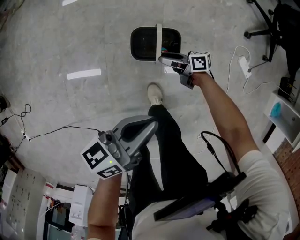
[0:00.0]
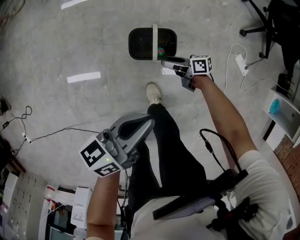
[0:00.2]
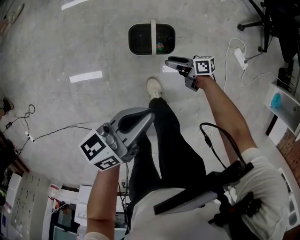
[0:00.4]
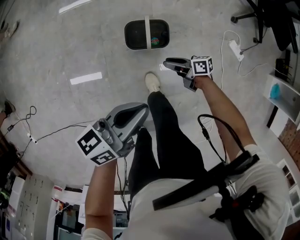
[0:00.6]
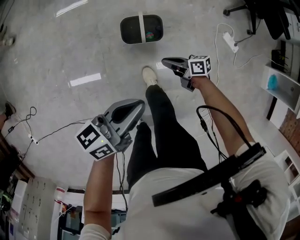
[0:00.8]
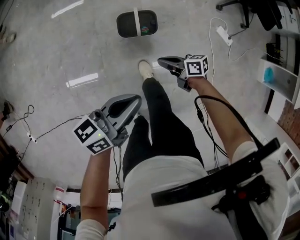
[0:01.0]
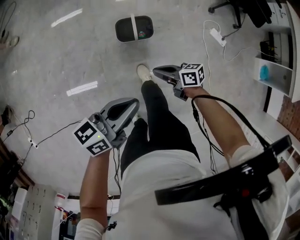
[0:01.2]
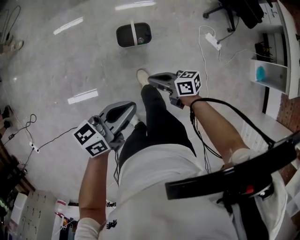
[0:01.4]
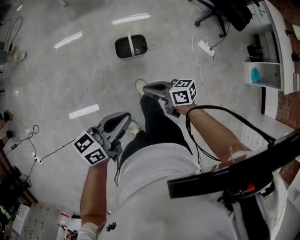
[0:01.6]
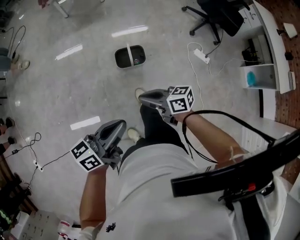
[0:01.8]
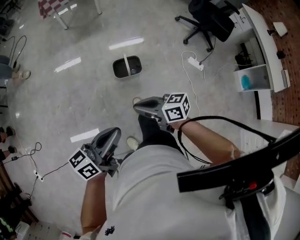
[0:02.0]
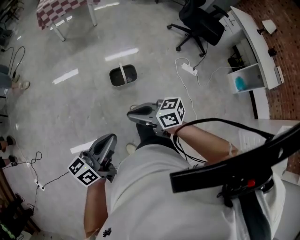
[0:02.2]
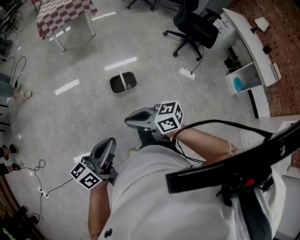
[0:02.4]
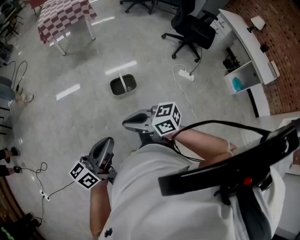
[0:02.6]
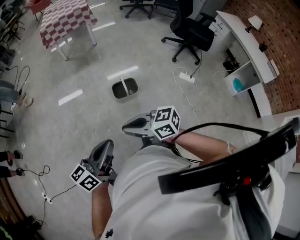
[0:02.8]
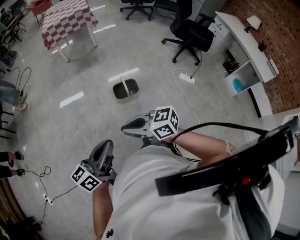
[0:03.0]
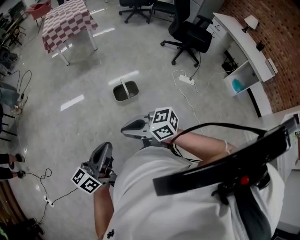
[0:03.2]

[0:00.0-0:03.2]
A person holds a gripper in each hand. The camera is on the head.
0:00.0 to 0:01.6: The left gripper changes place by some 30 cm; the right gripper heads upward, covering some 35 cm, and closes its fingers.
0:01.6 to 0:03.2: The left gripper changes place by about 20 cm; the right gripper goes approximately 20 cm upward, and turns by approximately 30 degrees.

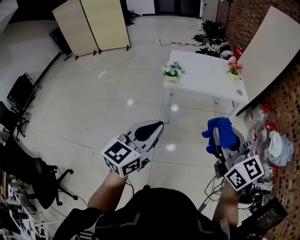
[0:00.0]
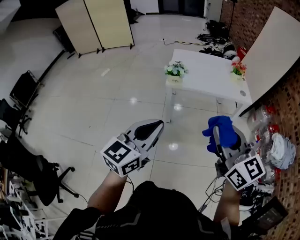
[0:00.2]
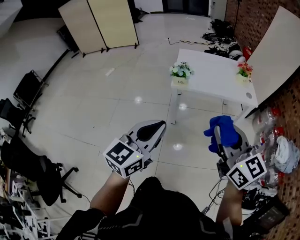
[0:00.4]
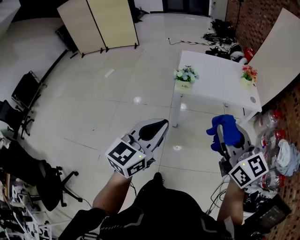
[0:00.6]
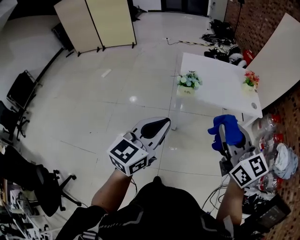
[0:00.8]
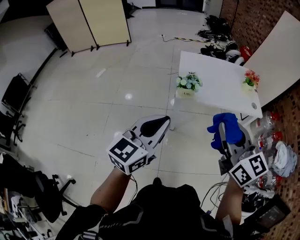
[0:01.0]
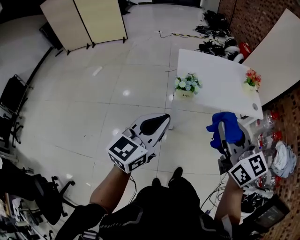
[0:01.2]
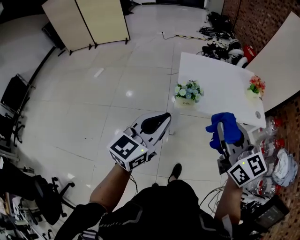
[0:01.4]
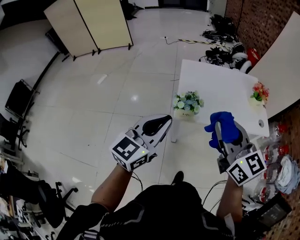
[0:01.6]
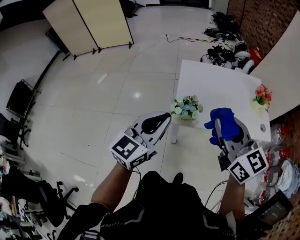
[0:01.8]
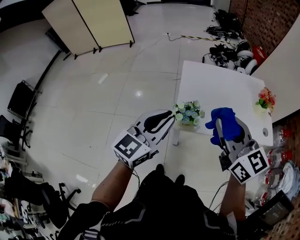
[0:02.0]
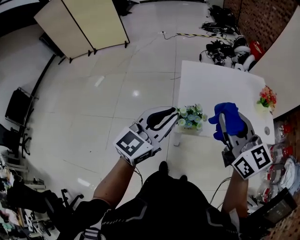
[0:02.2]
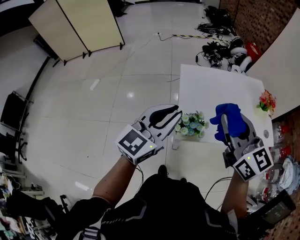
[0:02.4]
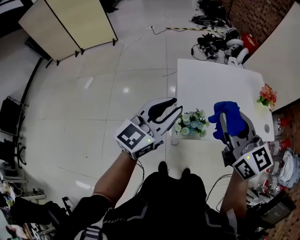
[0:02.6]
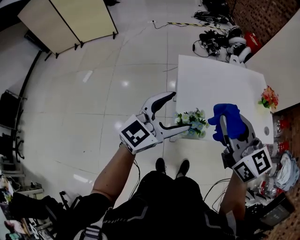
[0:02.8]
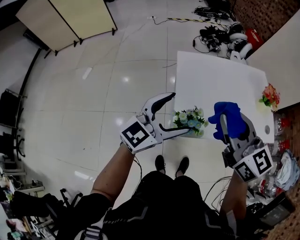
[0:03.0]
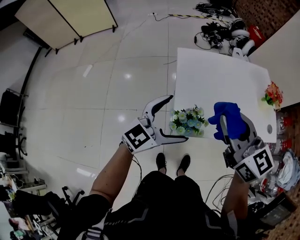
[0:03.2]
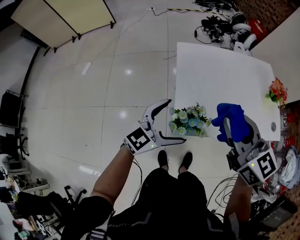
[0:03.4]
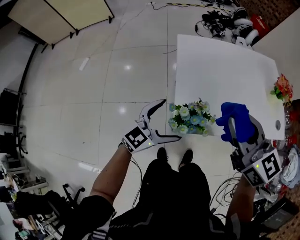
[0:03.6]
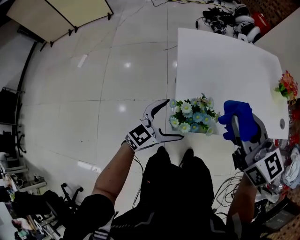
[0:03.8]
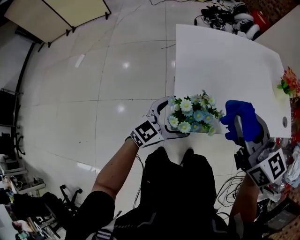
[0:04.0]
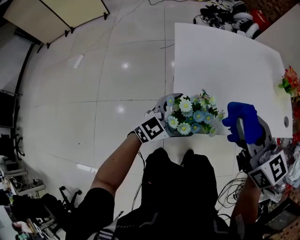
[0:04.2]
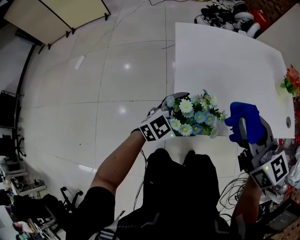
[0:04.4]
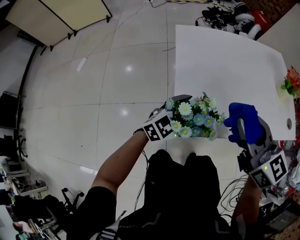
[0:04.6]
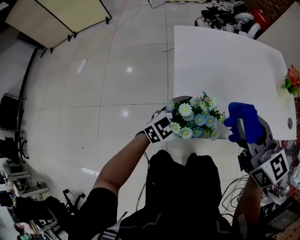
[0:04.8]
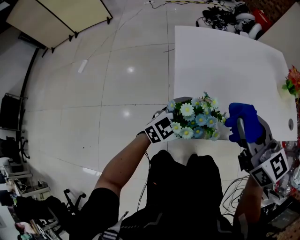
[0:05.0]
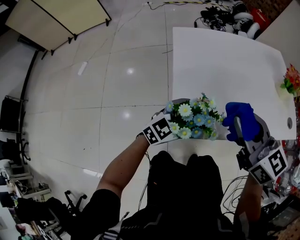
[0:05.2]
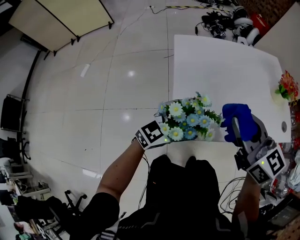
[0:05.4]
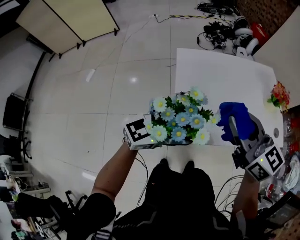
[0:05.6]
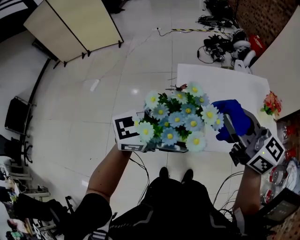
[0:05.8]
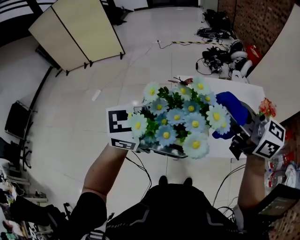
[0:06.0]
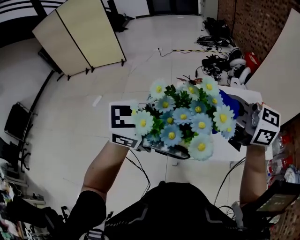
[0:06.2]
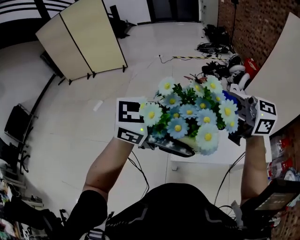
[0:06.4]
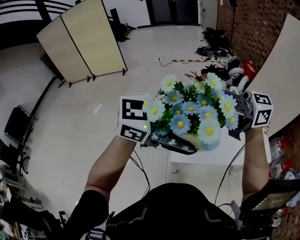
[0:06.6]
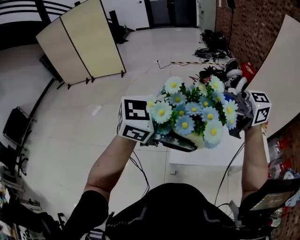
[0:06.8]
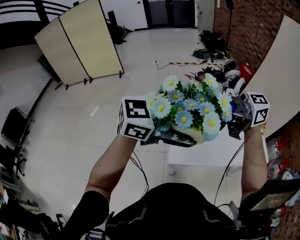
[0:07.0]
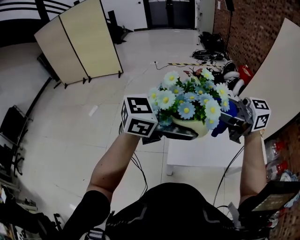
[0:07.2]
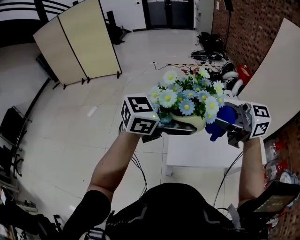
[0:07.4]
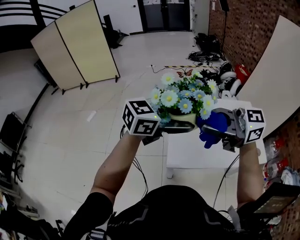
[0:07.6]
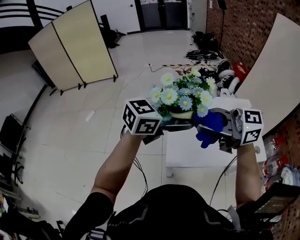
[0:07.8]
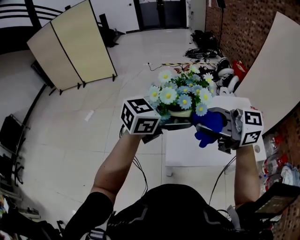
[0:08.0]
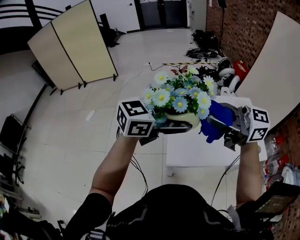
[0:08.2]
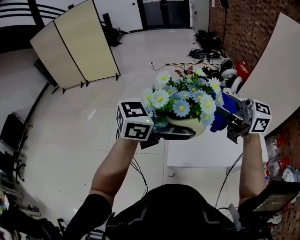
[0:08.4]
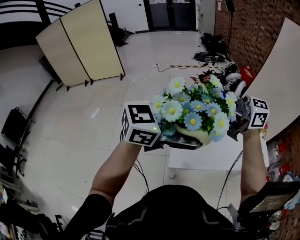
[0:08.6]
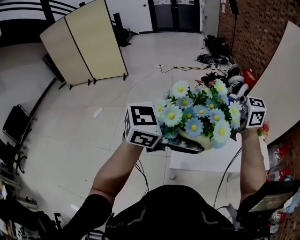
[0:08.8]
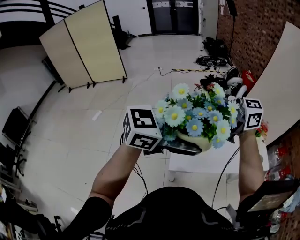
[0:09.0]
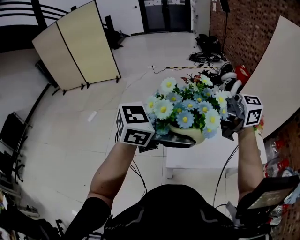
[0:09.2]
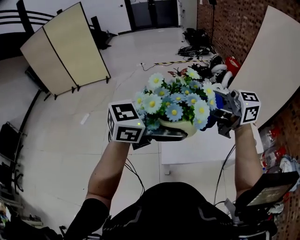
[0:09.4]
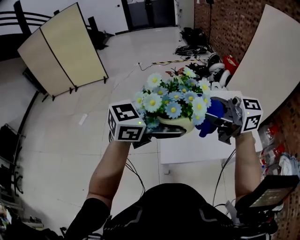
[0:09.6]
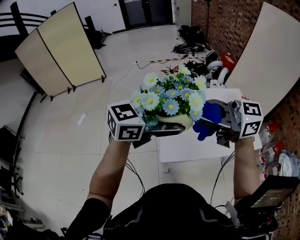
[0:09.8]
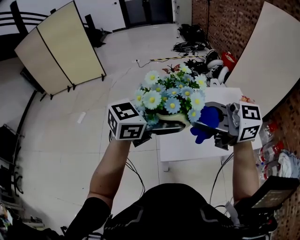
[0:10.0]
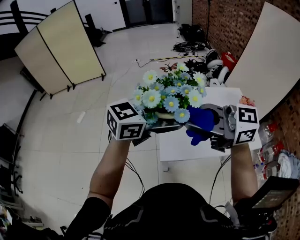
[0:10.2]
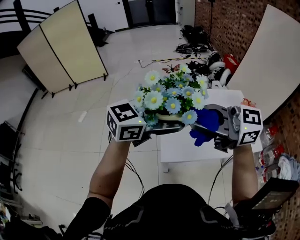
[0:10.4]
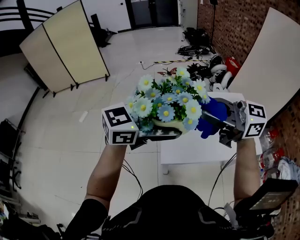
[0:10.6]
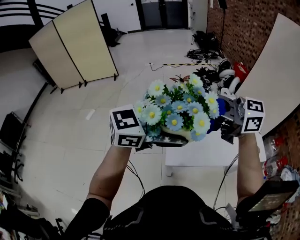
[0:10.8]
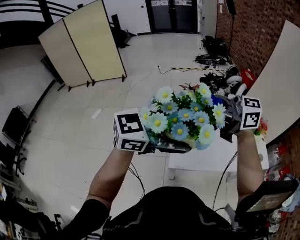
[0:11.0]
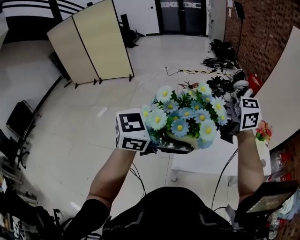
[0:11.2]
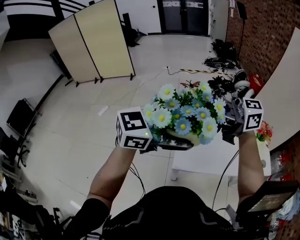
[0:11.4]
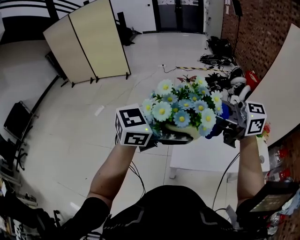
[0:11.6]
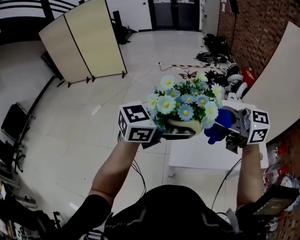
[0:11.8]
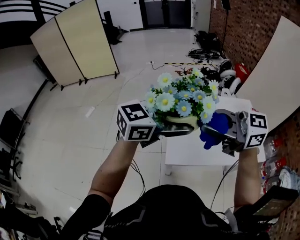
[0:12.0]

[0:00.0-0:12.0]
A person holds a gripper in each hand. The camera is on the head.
0:00.0 to 0:01.6: Both grippers are carried forward, some 40 cm.
0:01.6 to 0:03.0: The two grippers go roughly 25 cm forward. The left gripper opens its fingers.
0:03.0 to 0:04.4: The left gripper heads downward, covering approximately 30 cm, and swivels approximately 20 degrees. Meanwhile the right gripper goes some 20 cm downward.
0:04.4 to 0:06.0: The right gripper shifts roughly 30 cm upward, and swivels approximately 30 degrees; the left gripper goes approximately 40 cm upward, and changes its angle by about 20 degrees.
0:06.0 to 0:07.6: The right gripper moves roughly 10 cm, and turns by some 30 degrees.
0:07.6 to 0:09.0: The left gripper moves about 10 cm. Meanwhile the right gripper ends up roughly 10 cm from where it was.
0:09.0 to 0:10.4: The right gripper shifts by about 10 cm, while the left gripper shifts by some 5 cm.

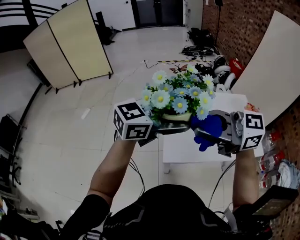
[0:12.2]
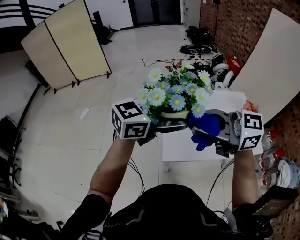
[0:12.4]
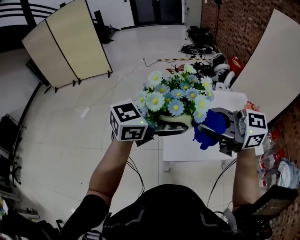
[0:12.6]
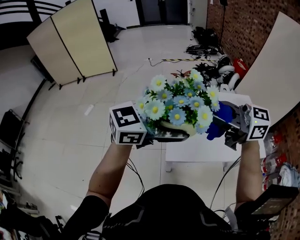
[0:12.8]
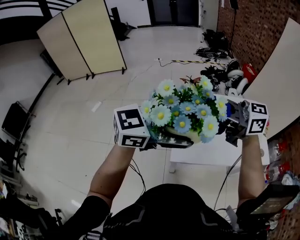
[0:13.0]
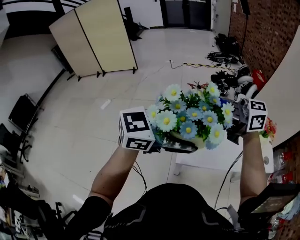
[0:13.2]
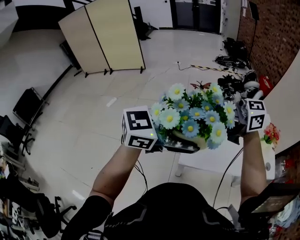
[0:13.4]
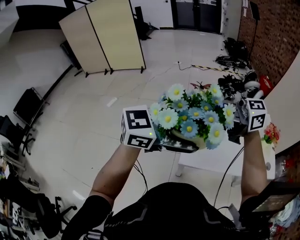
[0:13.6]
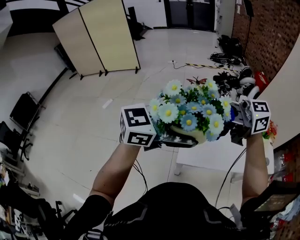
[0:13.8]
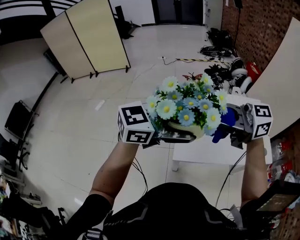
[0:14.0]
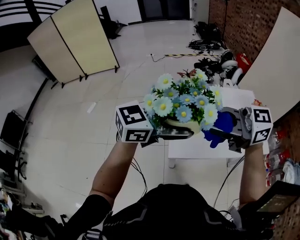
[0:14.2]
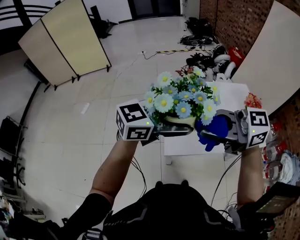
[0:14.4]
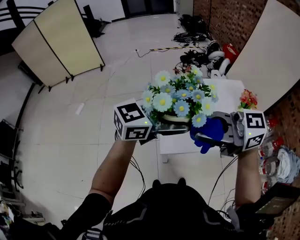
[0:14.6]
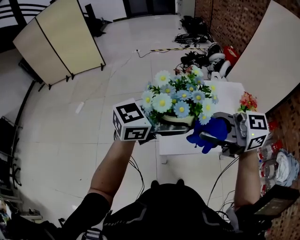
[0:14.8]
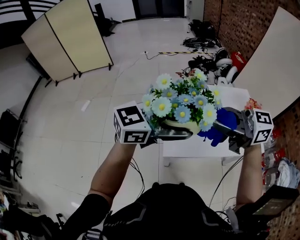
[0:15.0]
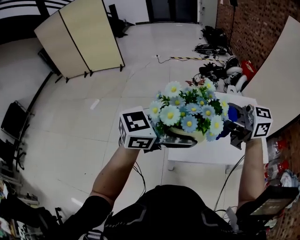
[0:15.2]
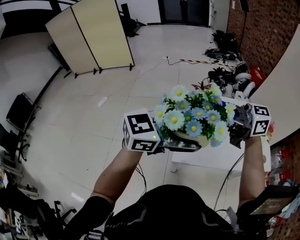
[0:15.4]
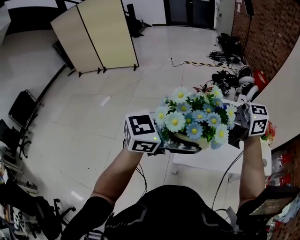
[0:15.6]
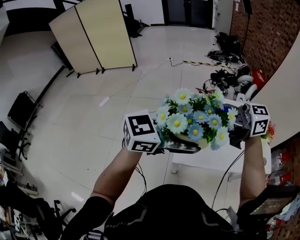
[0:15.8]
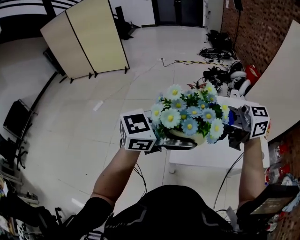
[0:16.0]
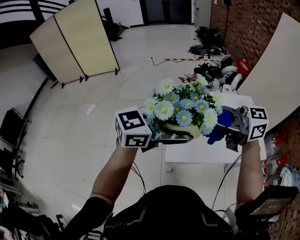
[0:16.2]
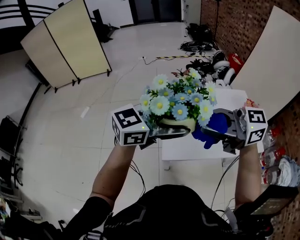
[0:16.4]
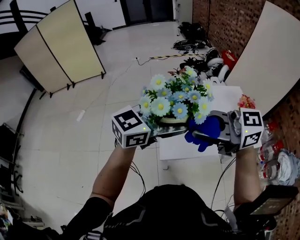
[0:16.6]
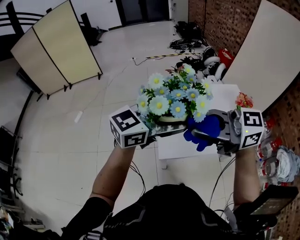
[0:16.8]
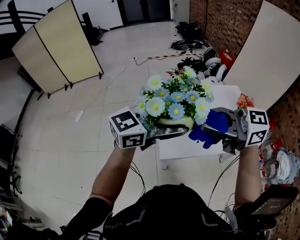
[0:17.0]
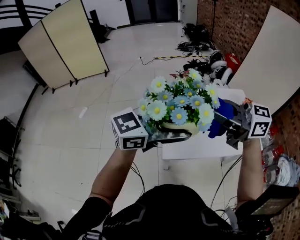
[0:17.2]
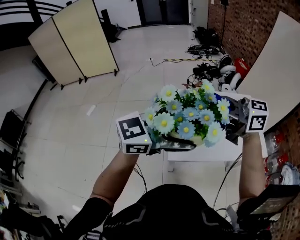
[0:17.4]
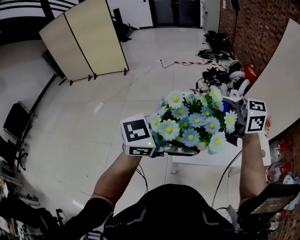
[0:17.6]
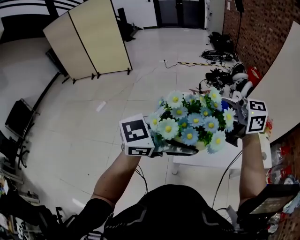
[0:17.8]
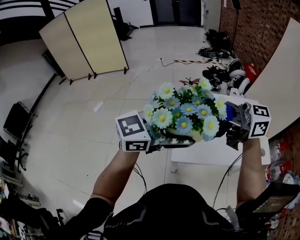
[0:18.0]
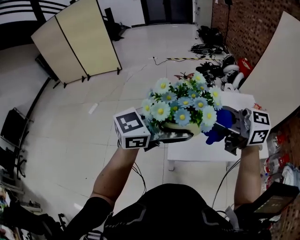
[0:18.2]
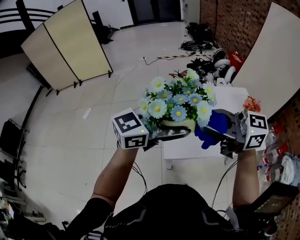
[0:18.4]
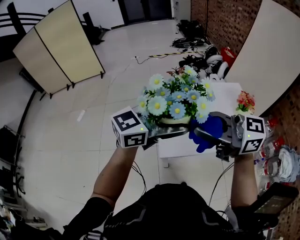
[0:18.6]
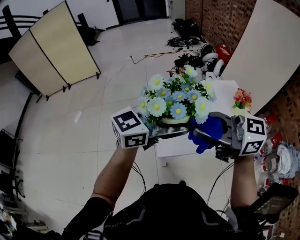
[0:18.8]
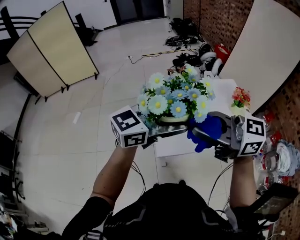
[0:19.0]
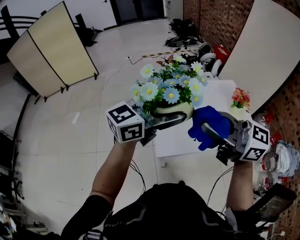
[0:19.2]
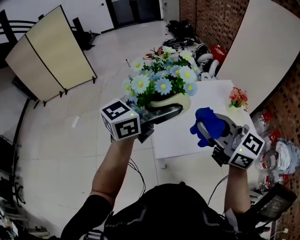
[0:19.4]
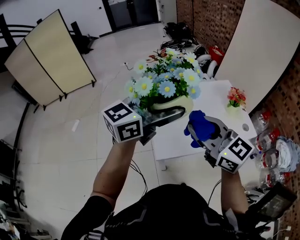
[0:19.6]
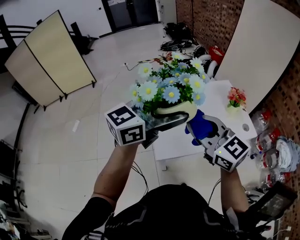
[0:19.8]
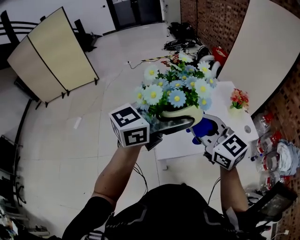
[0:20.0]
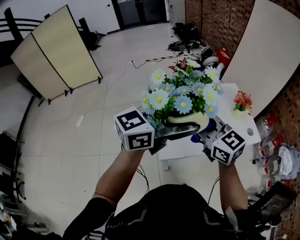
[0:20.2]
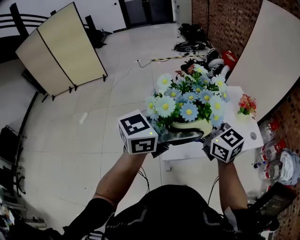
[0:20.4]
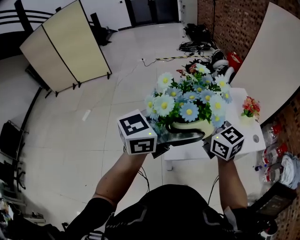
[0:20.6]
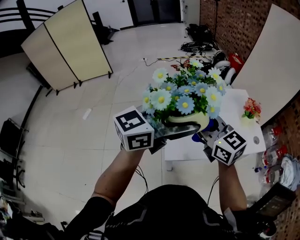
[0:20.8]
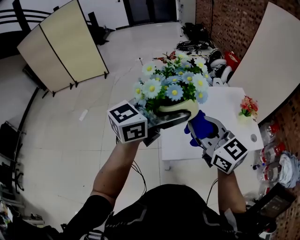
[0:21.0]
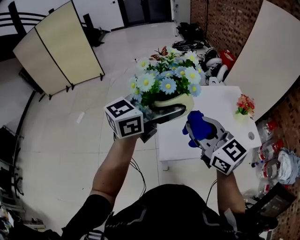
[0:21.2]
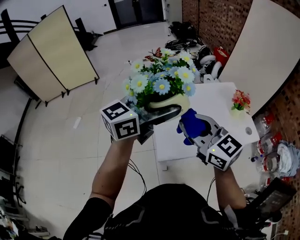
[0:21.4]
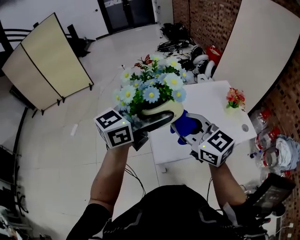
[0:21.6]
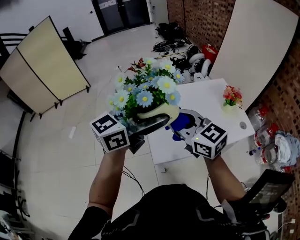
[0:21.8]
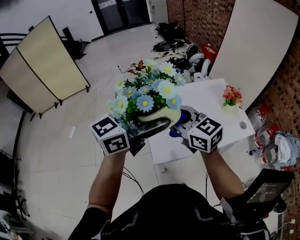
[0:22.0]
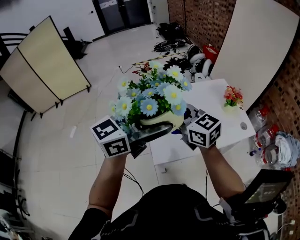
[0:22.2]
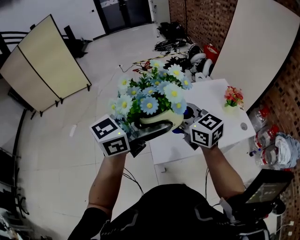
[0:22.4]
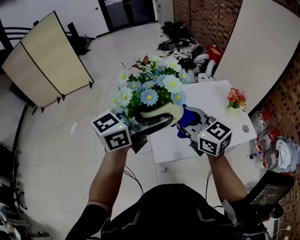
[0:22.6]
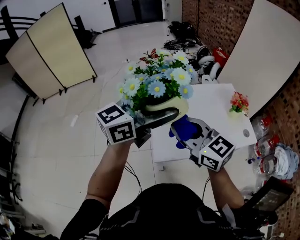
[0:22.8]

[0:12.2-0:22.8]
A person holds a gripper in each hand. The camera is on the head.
0:12.2 to 0:13.8: The right gripper shifts by about 10 cm.
0:15.2 to 0:16.8: The right gripper shifts by approximately 10 cm.
0:18.2 to 0:19.8: The right gripper heads downward, covering some 5 cm, and swivels roughly 50 degrees.
0:19.8 to 0:21.2: The right gripper reaches approximately 10 cm forward, then returns.
0:21.2 to 0:22.8: The right gripper travels forward and back again, approximately 10 cm each way.
